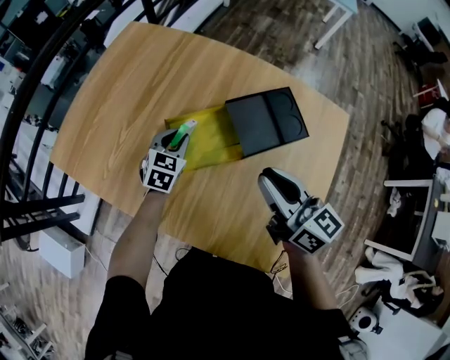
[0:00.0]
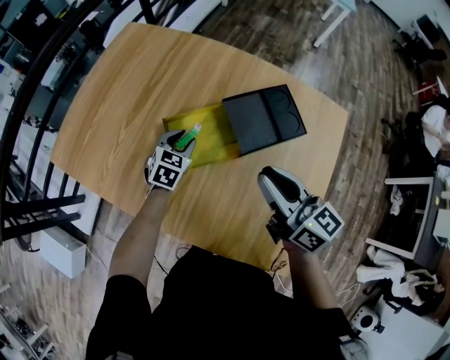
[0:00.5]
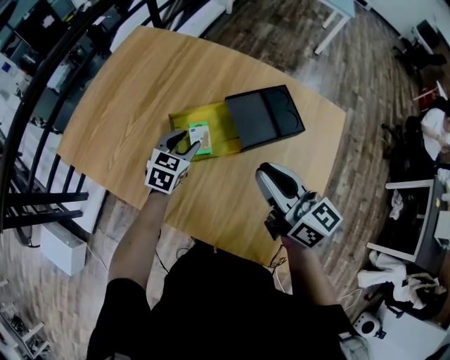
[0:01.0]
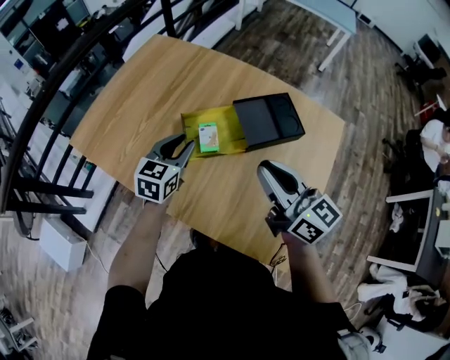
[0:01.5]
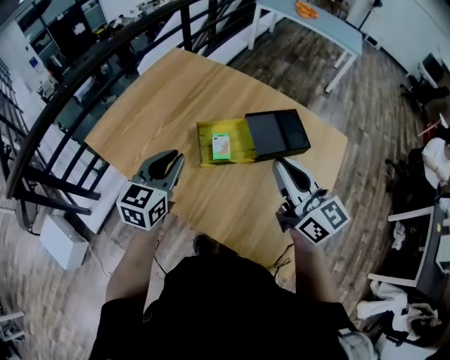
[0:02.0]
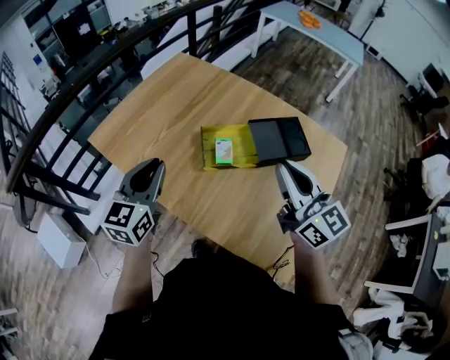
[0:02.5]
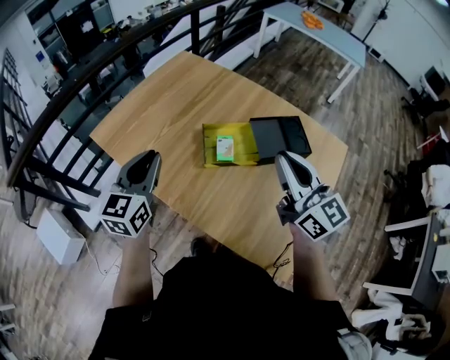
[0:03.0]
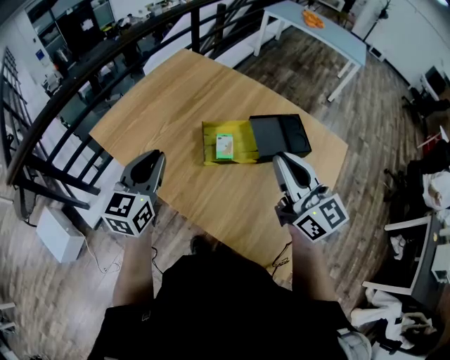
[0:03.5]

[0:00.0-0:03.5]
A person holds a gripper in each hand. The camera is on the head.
0:00.0 to 0:02.0: The right gripper is displaced upward and backward by roughly 10 cm. Meanwhile the left gripper goes roughly 25 cm upward and backward, changes its angle by roughly 30 degrees, and opens, then closes again.
0:02.0 to 0:03.5: The left gripper is displaced to the left by some 5 cm.

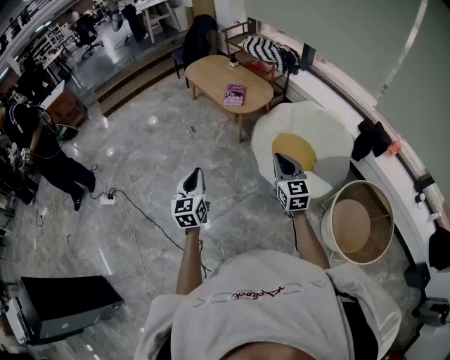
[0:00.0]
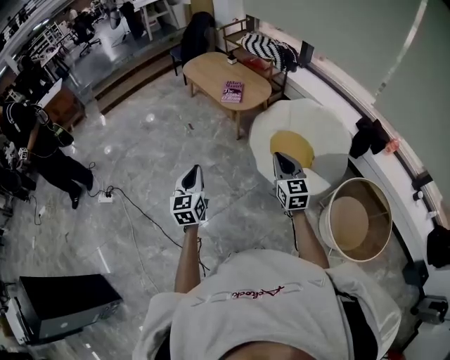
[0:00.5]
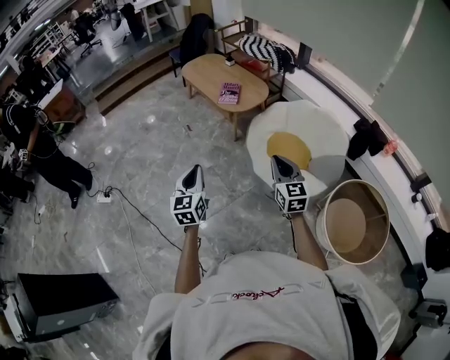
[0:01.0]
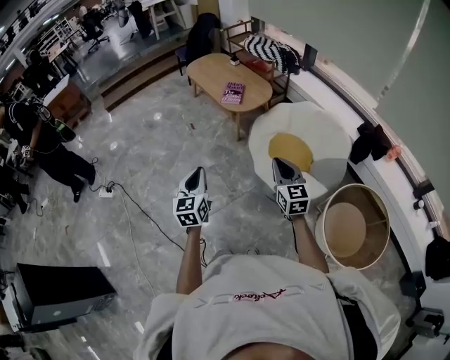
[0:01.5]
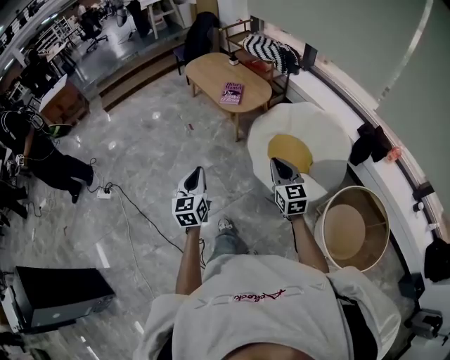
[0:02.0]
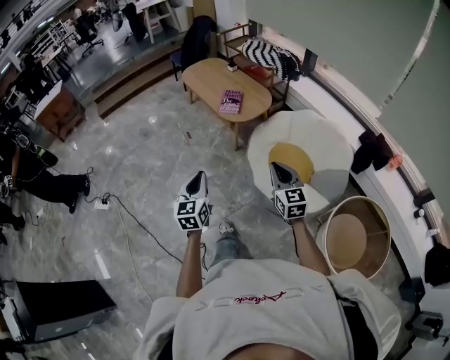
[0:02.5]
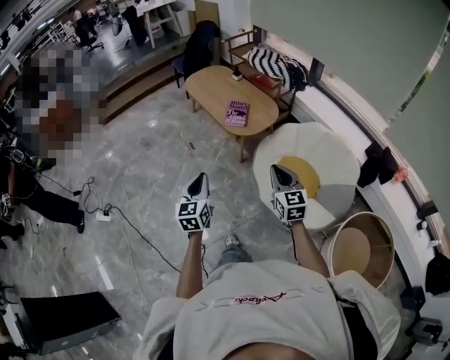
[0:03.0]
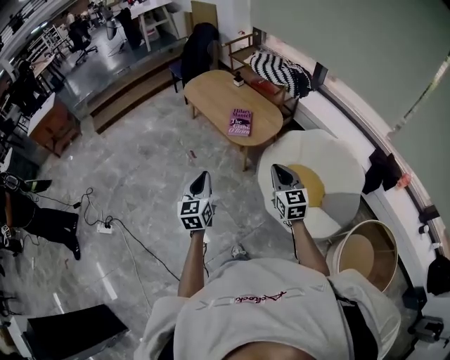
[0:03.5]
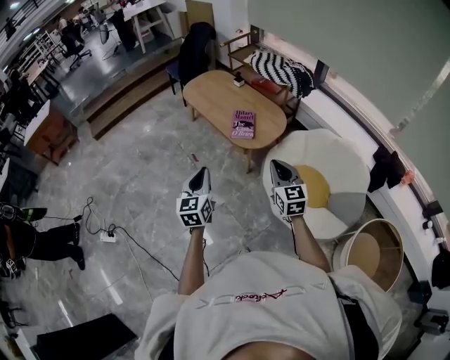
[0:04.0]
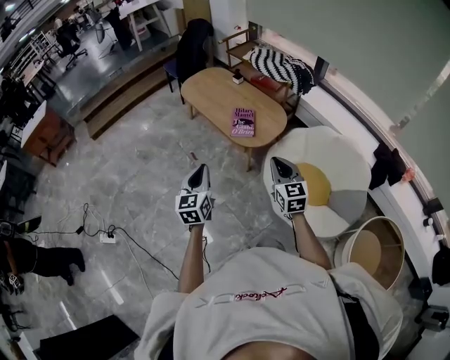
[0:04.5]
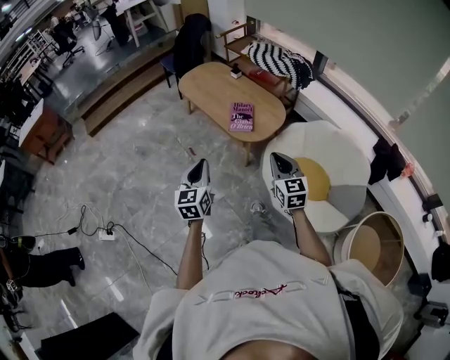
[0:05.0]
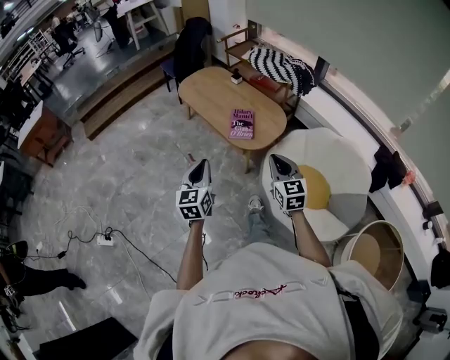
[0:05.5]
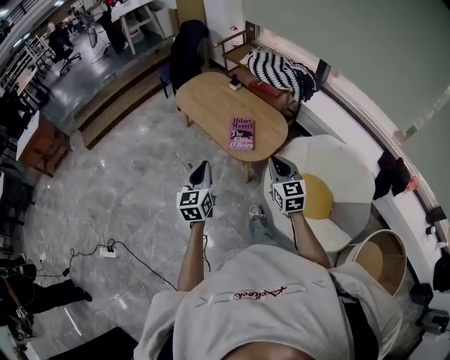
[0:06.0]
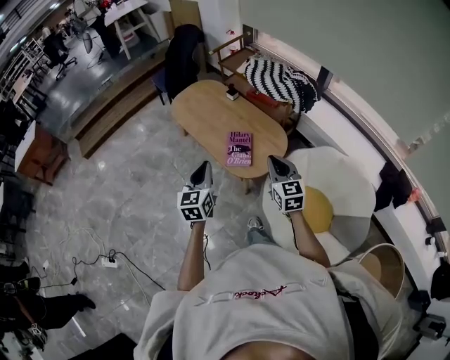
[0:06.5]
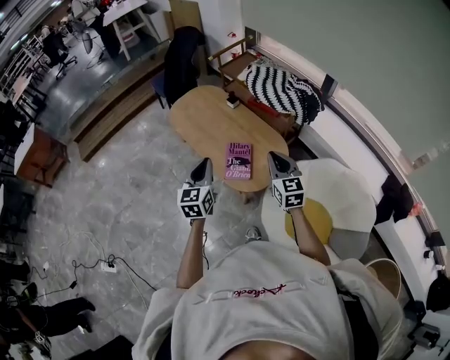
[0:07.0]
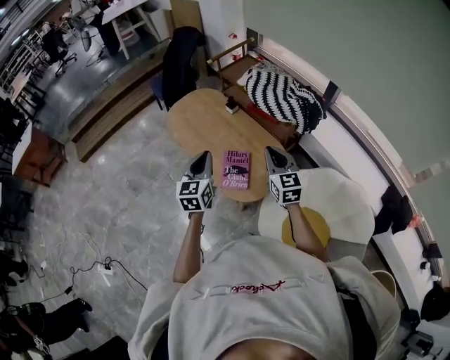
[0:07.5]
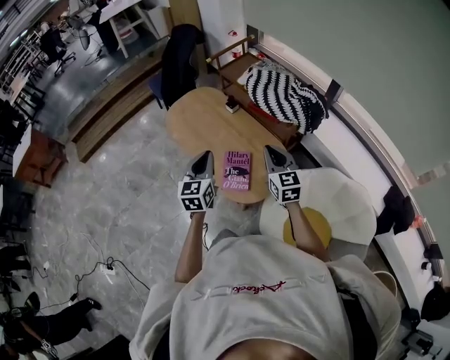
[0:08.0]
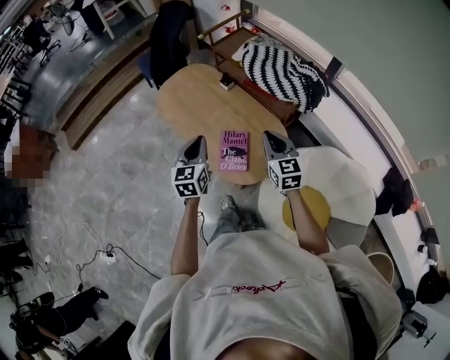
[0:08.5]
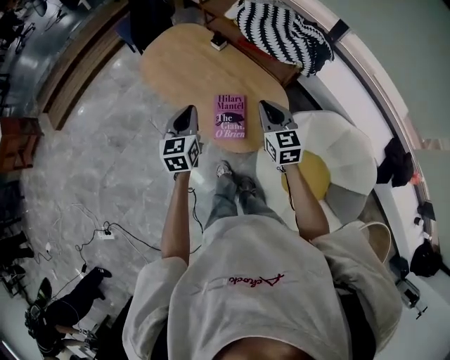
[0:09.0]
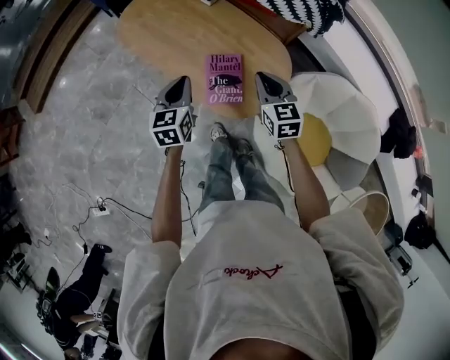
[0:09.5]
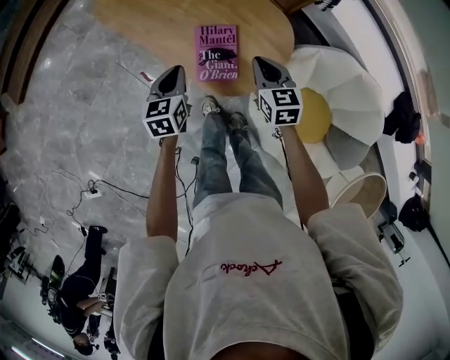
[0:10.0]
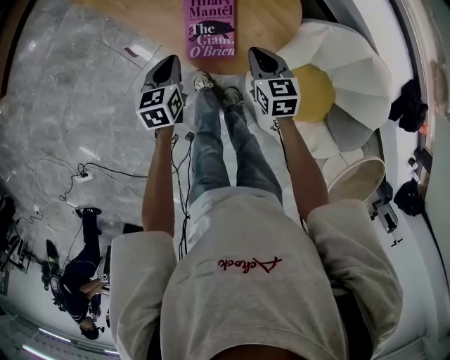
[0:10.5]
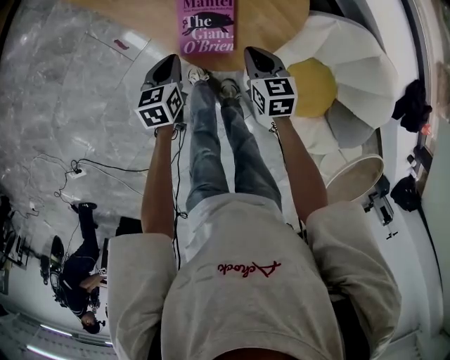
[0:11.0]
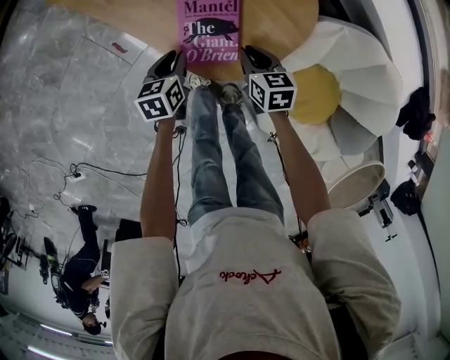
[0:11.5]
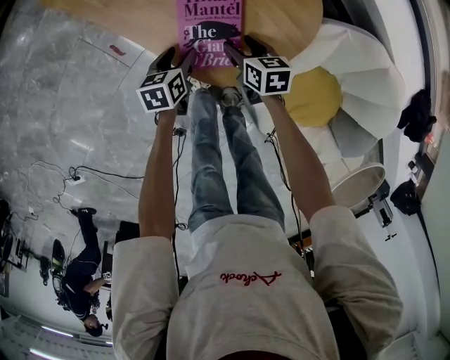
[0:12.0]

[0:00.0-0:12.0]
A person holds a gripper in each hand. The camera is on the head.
0:00.0 to 0:02.0: The left gripper shifts some 5 cm to the right. Meanwhile the right gripper ends up some 5 cm from where it was.
0:02.0 to 0:04.0: Both grippers move forward, some 35 cm.
0:04.0 to 0:06.0: The two grippers go about 15 cm forward.
0:06.0 to 0:08.0: Both grippers travel together forward, about 35 cm.
0:08.0 to 0:10.0: The grippers both shift downward by roughly 25 cm. The left gripper rotates about 30 degrees; the right gripper swivels some 30 degrees.
0:10.0 to 0:12.0: Both grippers travel together downward, approximately 25 cm. The left gripper turns by about 20 degrees, and opens its fingers. The right gripper changes its angle by some 30 degrees, and opens its fingers.

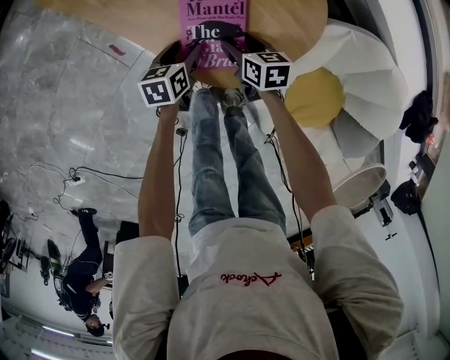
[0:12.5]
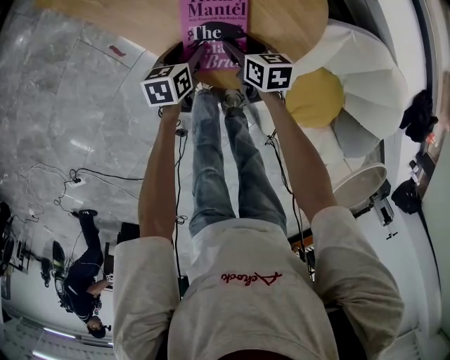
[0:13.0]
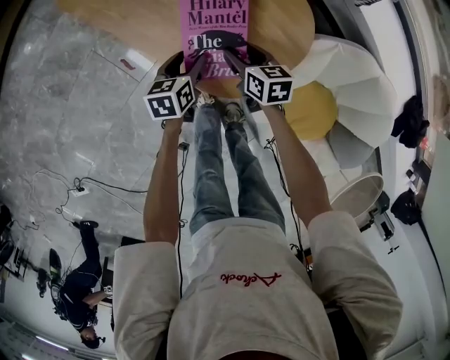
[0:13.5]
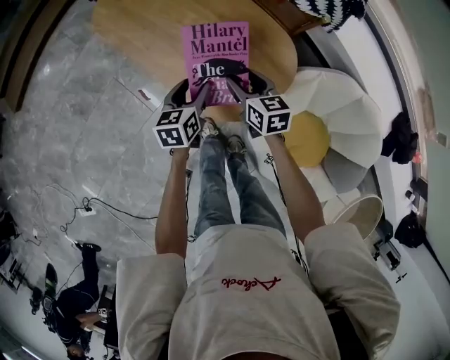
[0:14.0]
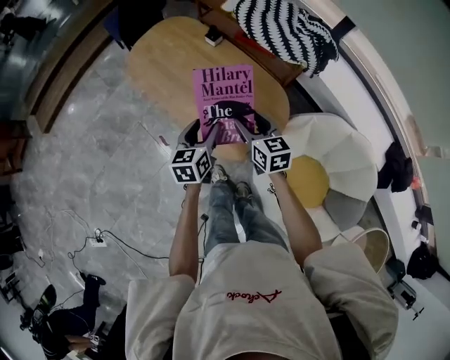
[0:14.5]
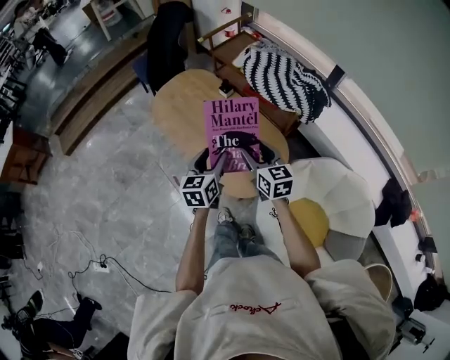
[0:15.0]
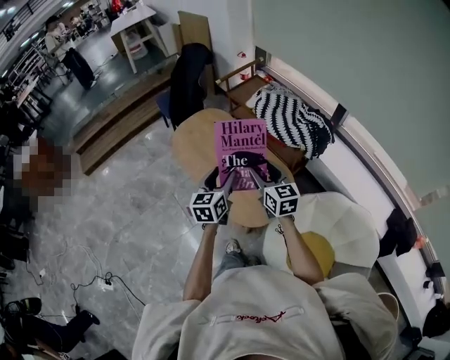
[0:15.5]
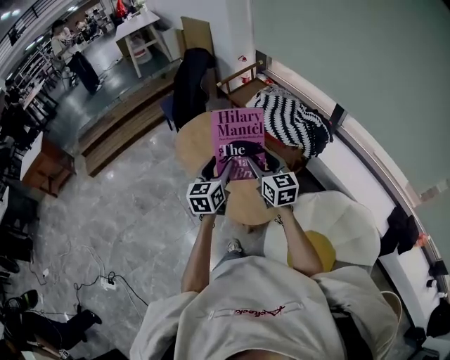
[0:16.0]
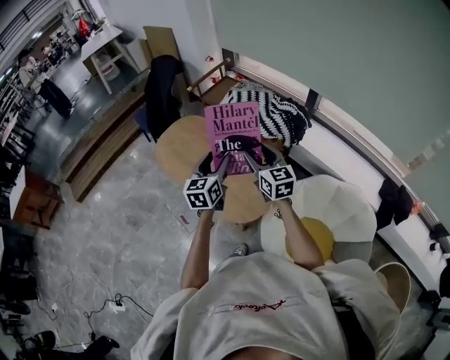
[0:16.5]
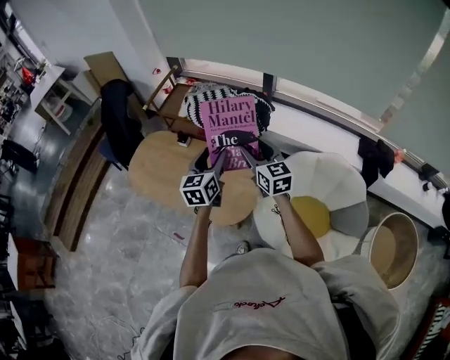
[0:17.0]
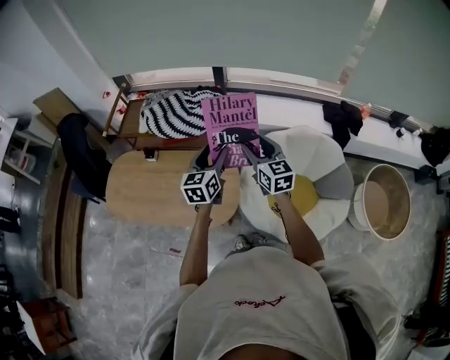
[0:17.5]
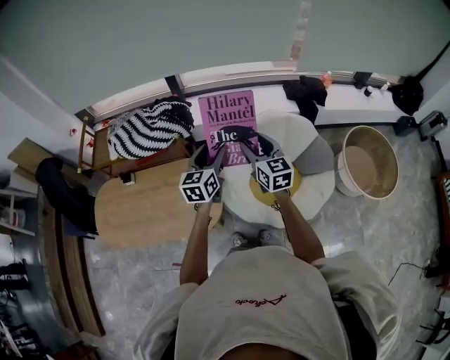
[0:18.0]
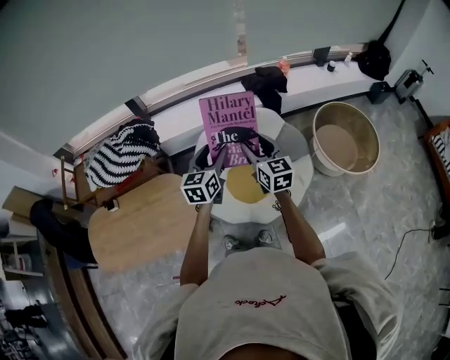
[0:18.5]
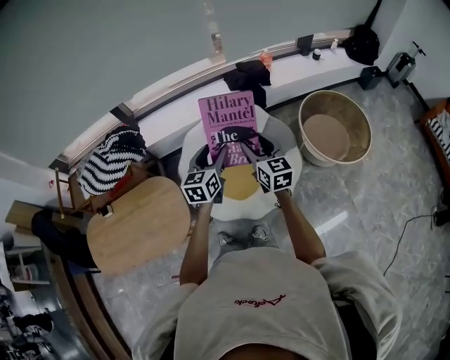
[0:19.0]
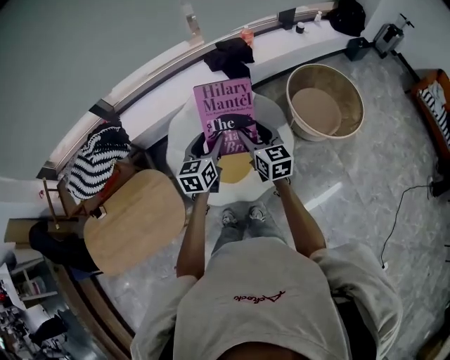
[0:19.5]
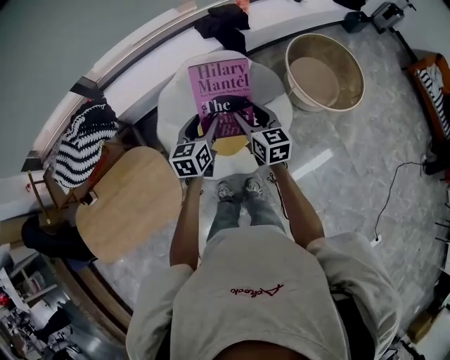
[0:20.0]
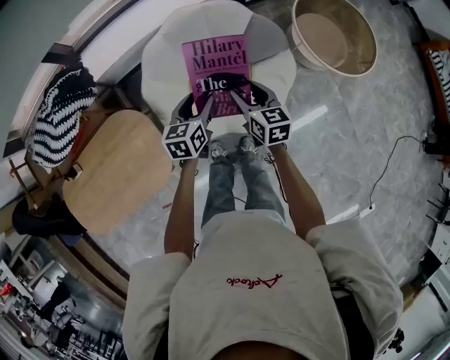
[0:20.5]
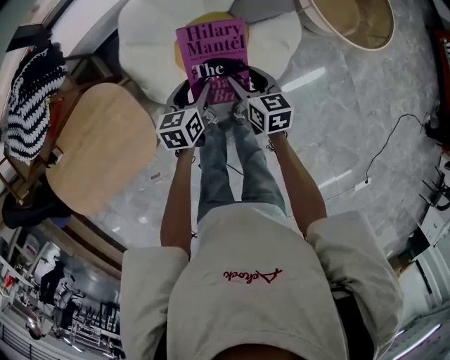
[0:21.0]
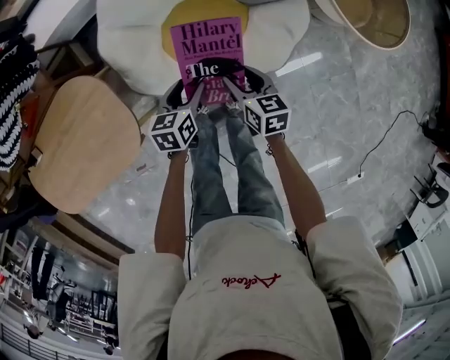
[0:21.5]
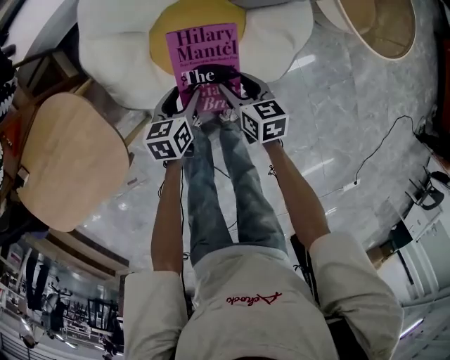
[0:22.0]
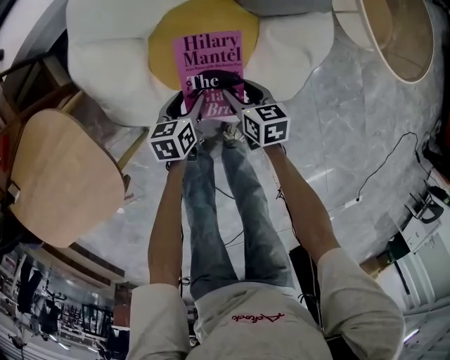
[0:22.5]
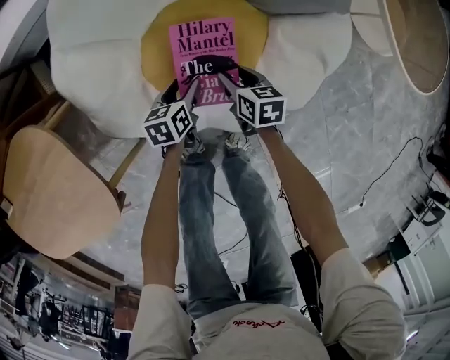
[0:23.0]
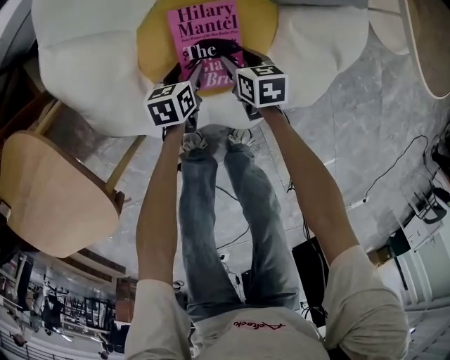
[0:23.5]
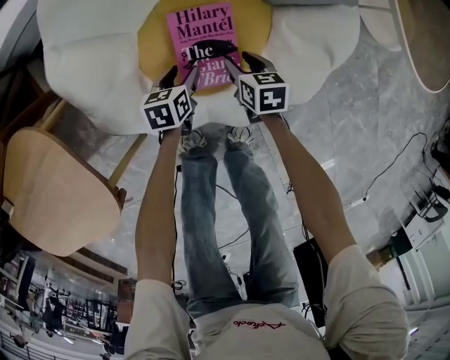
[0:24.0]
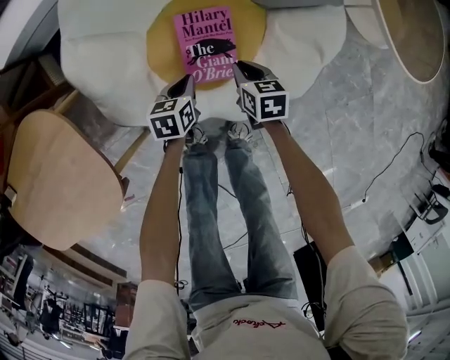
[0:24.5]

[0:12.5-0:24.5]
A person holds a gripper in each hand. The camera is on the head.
0:12.5 to 0:14.5: Both grippers move upward, some 35 cm. The right gripper swivels about 30 degrees; the left gripper turns by roughly 30 degrees.
0:14.5 to 0:16.5: Both grippers travel together upward, approximately 25 cm. The left gripper changes its angle by some 20 degrees. Meanwhile the right gripper changes its angle by some 20 degrees.
0:16.5 to 0:18.5: Both grippers are carried approximately 40 cm. The right gripper turns by some 60 degrees. Meanwhile the left gripper swivels some 60 degrees.
0:18.5 to 0:20.5: The two grippers go about 20 cm downward. The left gripper changes its angle by some 20 degrees. Meanwhile the right gripper changes its angle by approximately 20 degrees.
0:20.5 to 0:22.5: Both grippers travel together downward, roughly 40 cm. The right gripper turns by some 20 degrees; the left gripper turns by approximately 20 degrees.
0:22.5 to 0:24.5: Both grippers travel together downward, about 5 cm. The left gripper closes up. The right gripper closes its fingers.
